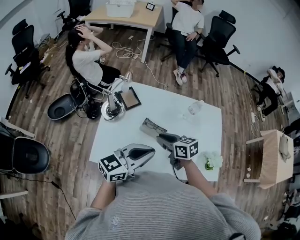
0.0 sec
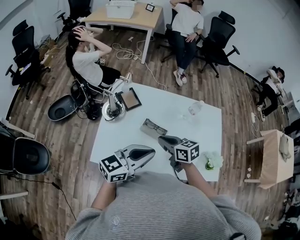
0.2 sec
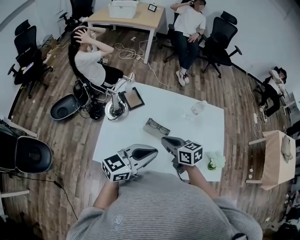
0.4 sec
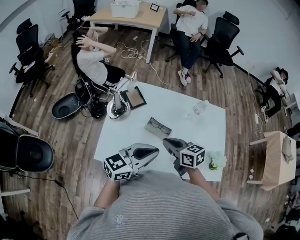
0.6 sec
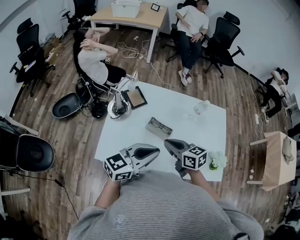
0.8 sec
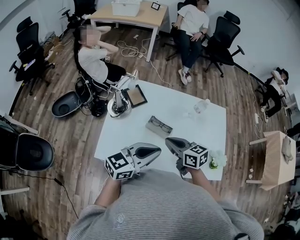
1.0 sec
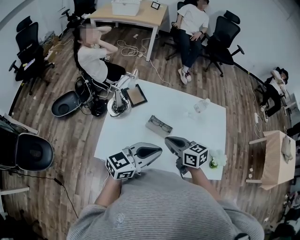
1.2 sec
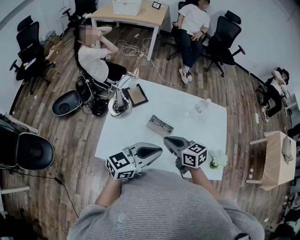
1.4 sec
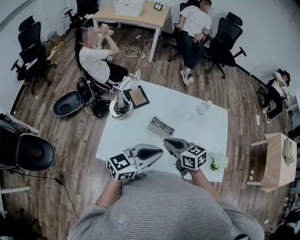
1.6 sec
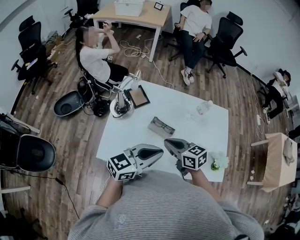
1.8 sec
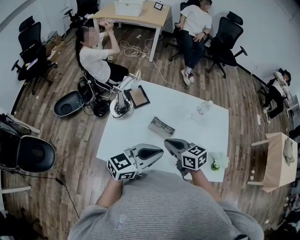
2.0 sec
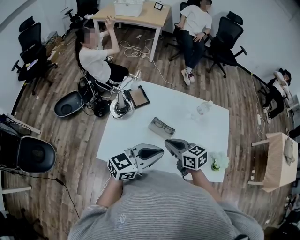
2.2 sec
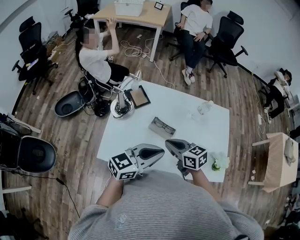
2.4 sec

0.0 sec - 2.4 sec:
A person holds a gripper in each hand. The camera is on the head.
0.0 sec - 1.2 sec: The grippers move only a little.
1.2 sec - 2.4 sec: The two grippers keep their place.

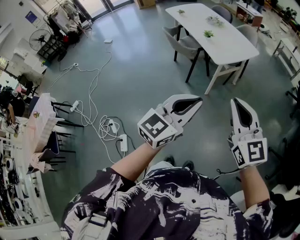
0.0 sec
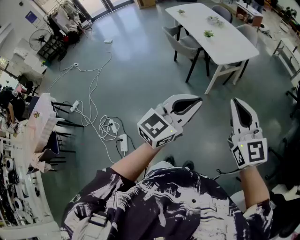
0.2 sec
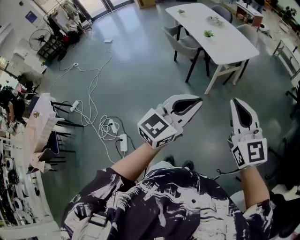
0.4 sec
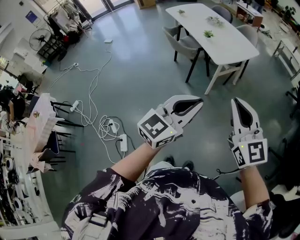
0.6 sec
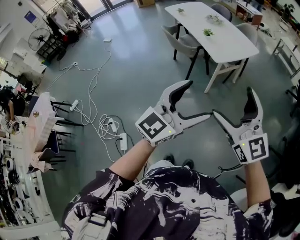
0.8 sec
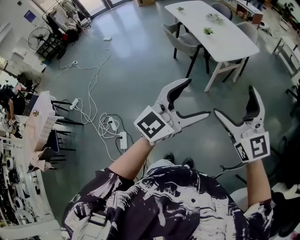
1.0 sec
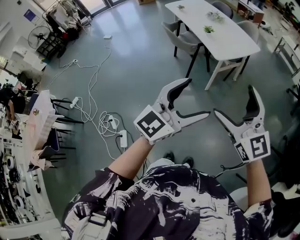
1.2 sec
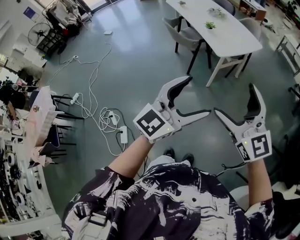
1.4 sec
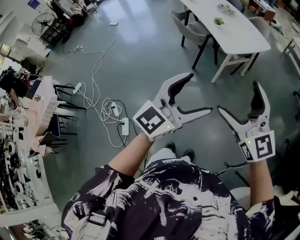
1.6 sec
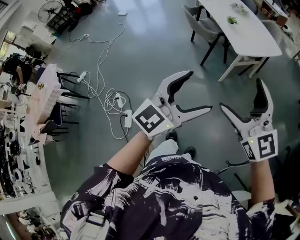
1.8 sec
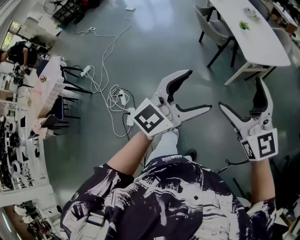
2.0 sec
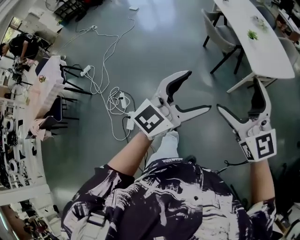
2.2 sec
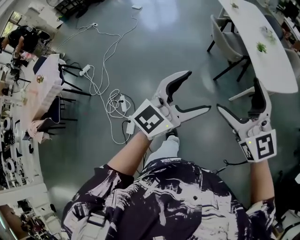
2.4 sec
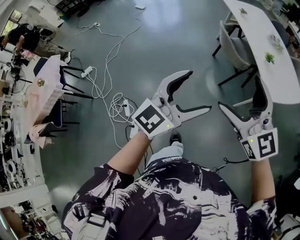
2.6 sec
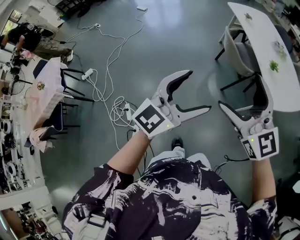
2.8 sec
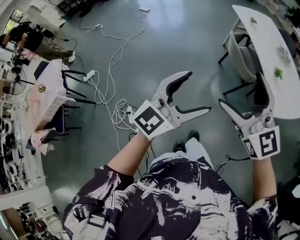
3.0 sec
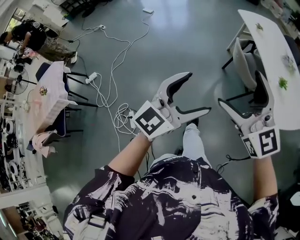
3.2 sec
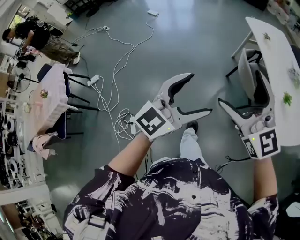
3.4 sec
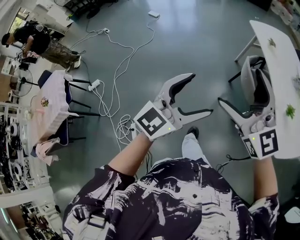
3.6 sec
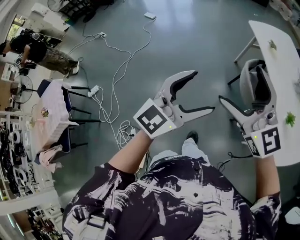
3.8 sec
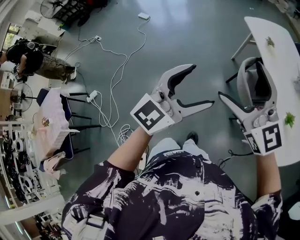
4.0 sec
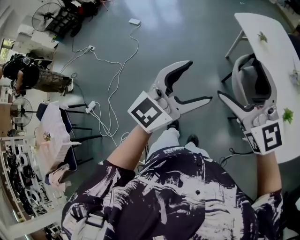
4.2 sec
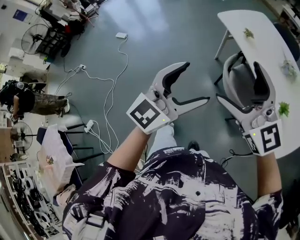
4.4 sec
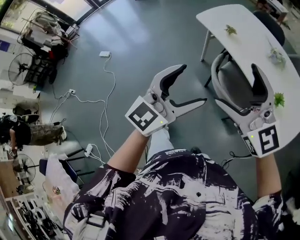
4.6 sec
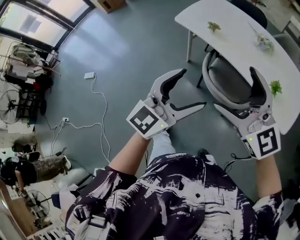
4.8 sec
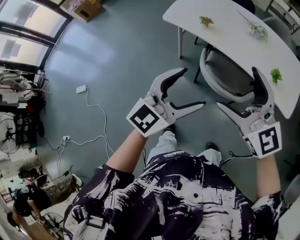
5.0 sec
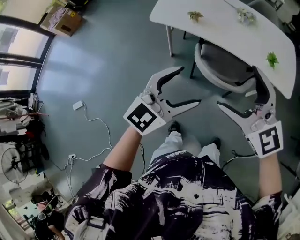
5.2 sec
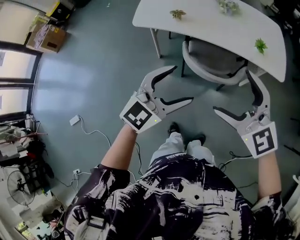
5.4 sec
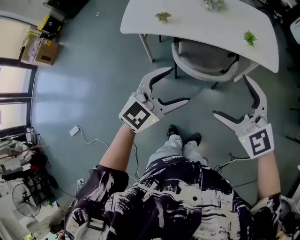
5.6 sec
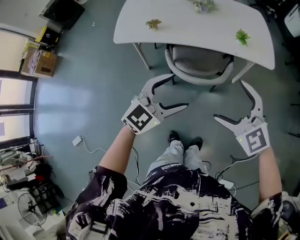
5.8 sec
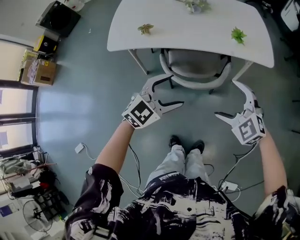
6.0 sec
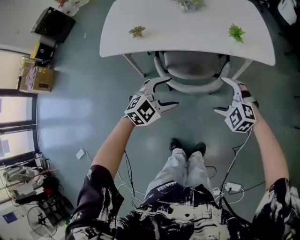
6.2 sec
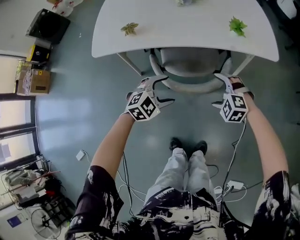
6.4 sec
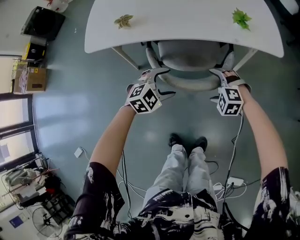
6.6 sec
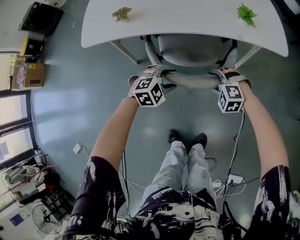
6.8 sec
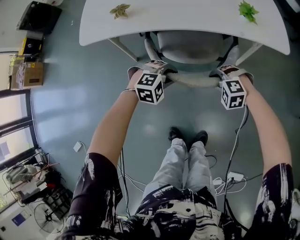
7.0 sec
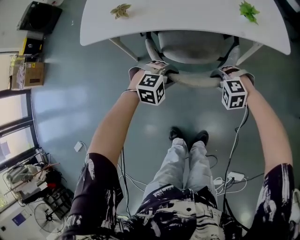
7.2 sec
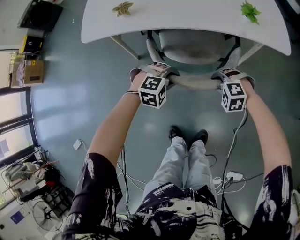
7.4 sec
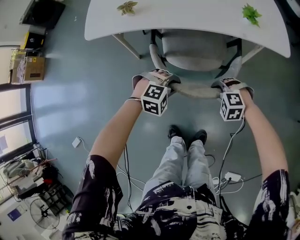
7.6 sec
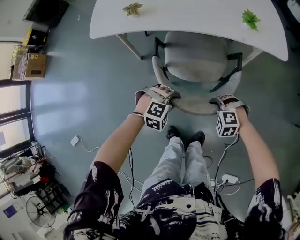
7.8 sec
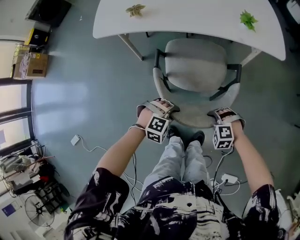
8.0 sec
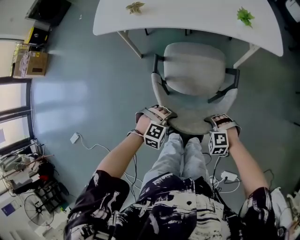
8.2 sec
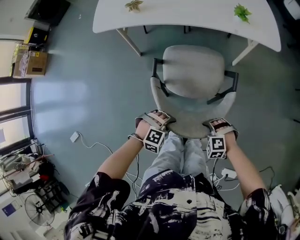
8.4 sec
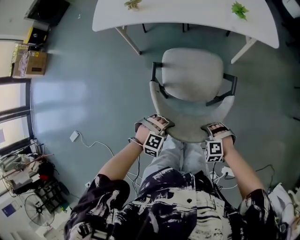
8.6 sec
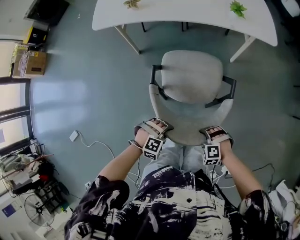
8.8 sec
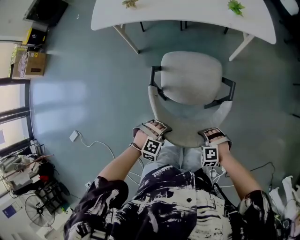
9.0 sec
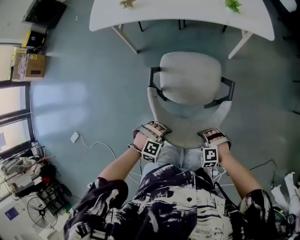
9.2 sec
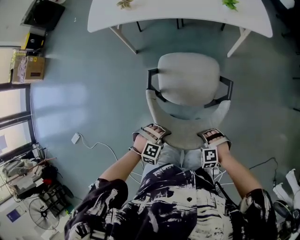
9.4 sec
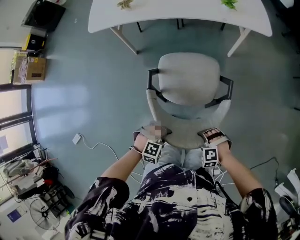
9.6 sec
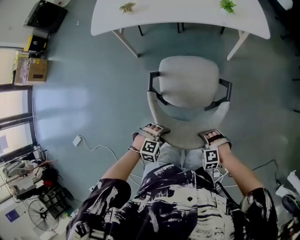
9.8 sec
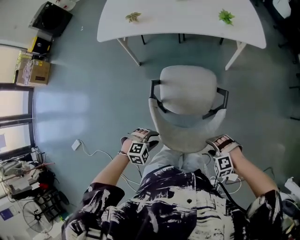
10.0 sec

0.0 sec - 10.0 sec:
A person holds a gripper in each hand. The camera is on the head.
0.0 sec - 1.4 sec: The right gripper opens up; the left gripper opens its fingers.
1.4 sec - 2.8 sec: The two grippers travel together, to the left and forward, about 50 cm.
2.8 sec - 4.2 sec: The pair of grippers is taken forward, some 50 cm.
4.2 sec - 5.8 sec: The right gripper goes about 15 cm downward, and tilts its fingers some 30 degrees downward. Meanwhile the left gripper shifts by roughly 30 cm, and turns by approximately 70 degrees.
5.8 sec - 7.2 sec: Both grippers travel together downward, approximately 35 cm. The right gripper points its fingers some 40 degrees further downward, and closes its fingers; the left gripper tips its fingers downward by approximately 40 degrees, and closes its fingers.
7.2 sec - 8.6 sec: The right gripper ends up roughly 35 cm from where it was. The left gripper shifts by approximately 35 cm.
8.6 sec - 10.0 sec: The left gripper ends up some 10 cm from where it was. The right gripper changes place by roughly 10 cm, and opens.

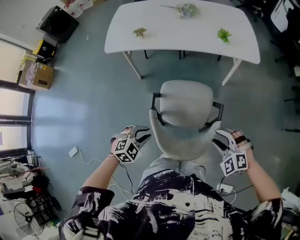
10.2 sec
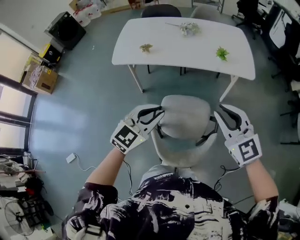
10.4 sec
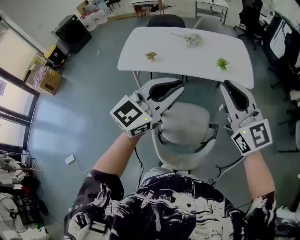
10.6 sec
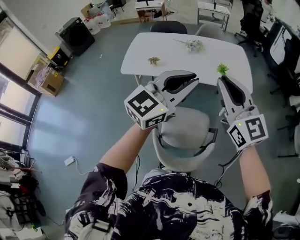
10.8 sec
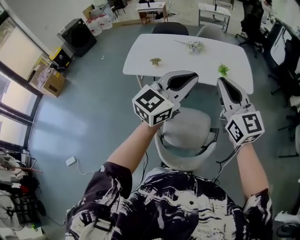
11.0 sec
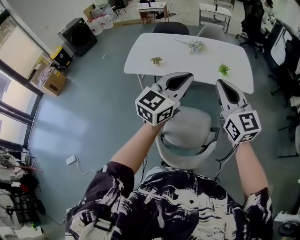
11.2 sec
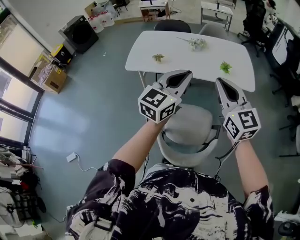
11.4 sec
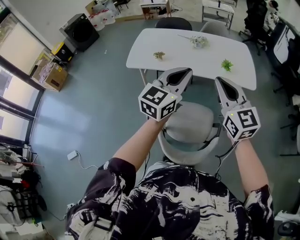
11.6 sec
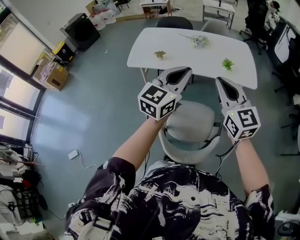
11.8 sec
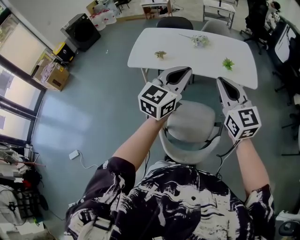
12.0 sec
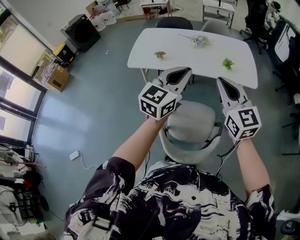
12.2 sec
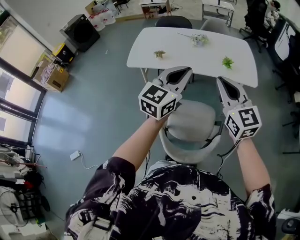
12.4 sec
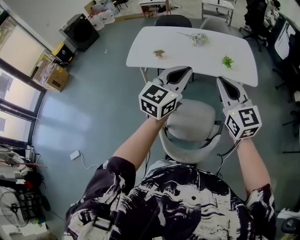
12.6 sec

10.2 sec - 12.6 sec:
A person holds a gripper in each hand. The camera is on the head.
10.2 sec - 11.4 sec: The grippers both shift upward and forward by some 40 cm. The right gripper angles its fingers upward, by about 50 degrees, and closes up. The left gripper points its fingers roughly 60 degrees further upward.
11.4 sec - 12.6 sec: The grippers move only a little.

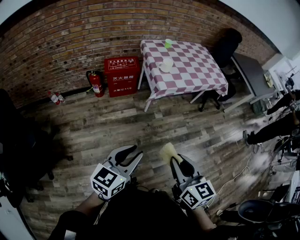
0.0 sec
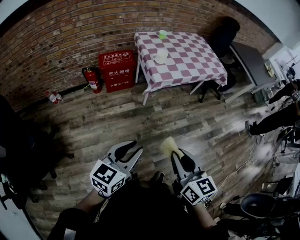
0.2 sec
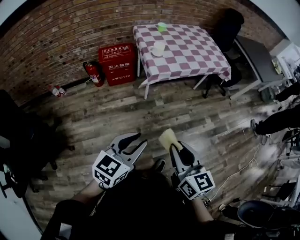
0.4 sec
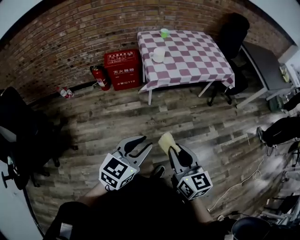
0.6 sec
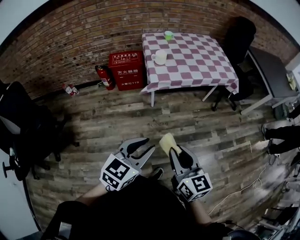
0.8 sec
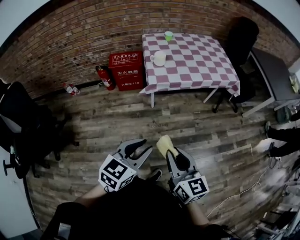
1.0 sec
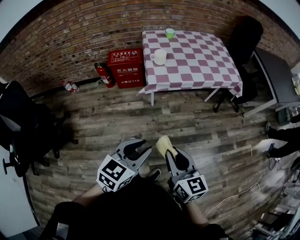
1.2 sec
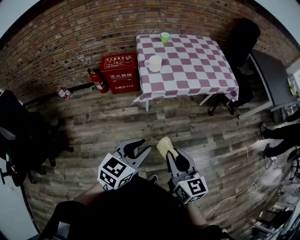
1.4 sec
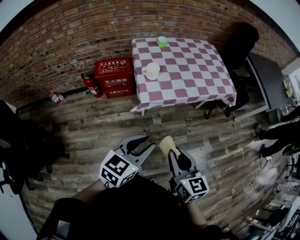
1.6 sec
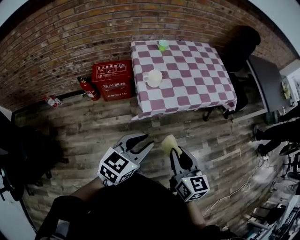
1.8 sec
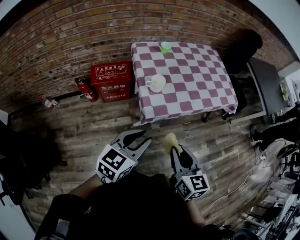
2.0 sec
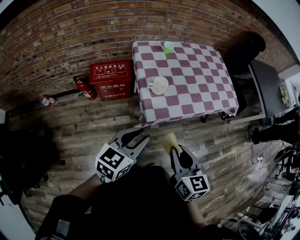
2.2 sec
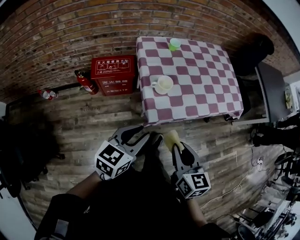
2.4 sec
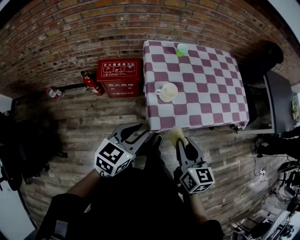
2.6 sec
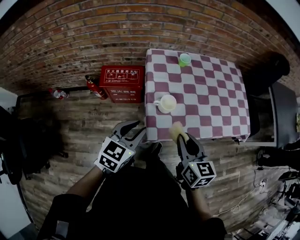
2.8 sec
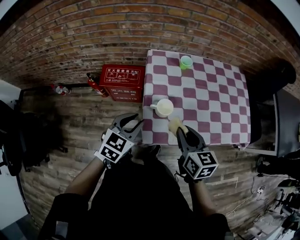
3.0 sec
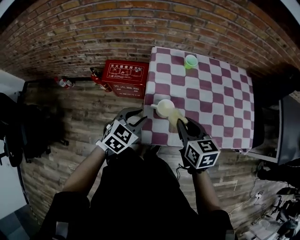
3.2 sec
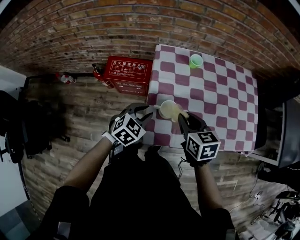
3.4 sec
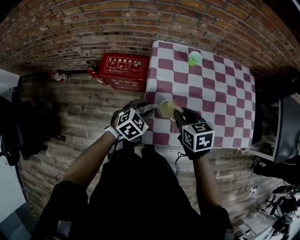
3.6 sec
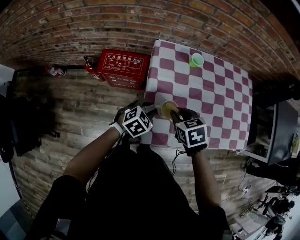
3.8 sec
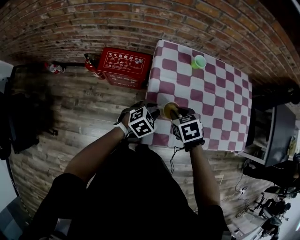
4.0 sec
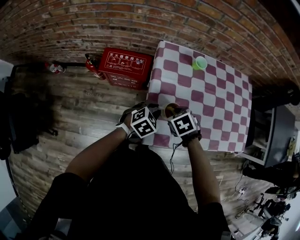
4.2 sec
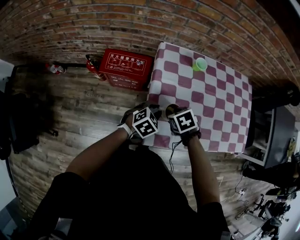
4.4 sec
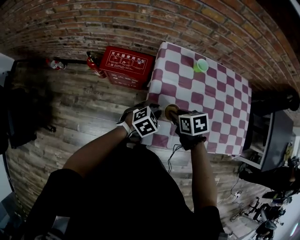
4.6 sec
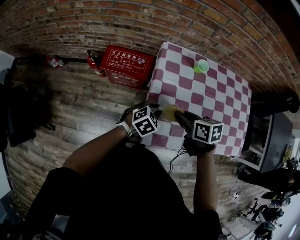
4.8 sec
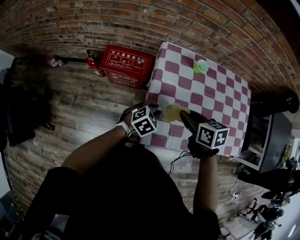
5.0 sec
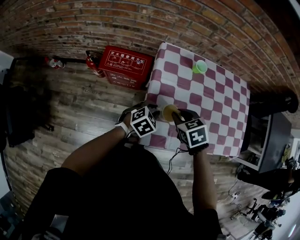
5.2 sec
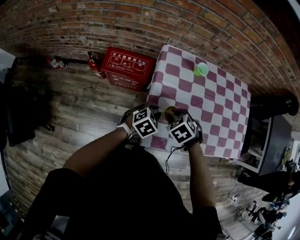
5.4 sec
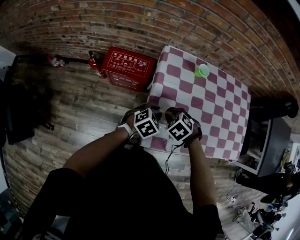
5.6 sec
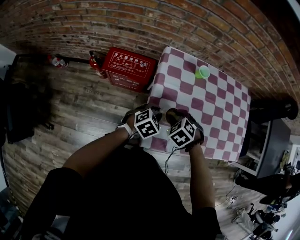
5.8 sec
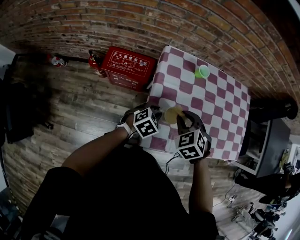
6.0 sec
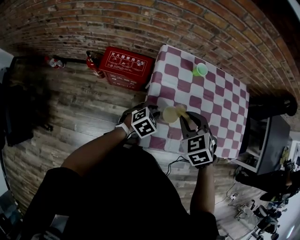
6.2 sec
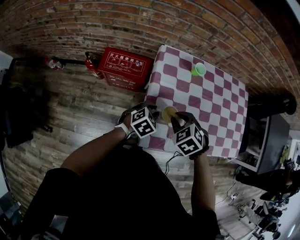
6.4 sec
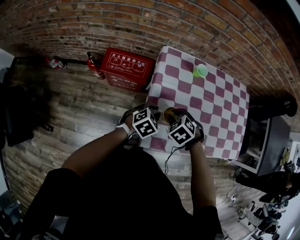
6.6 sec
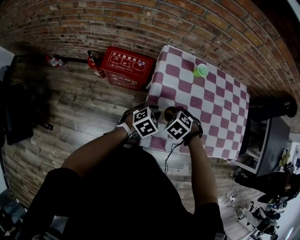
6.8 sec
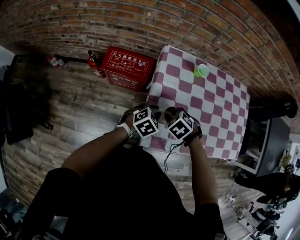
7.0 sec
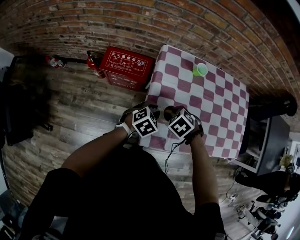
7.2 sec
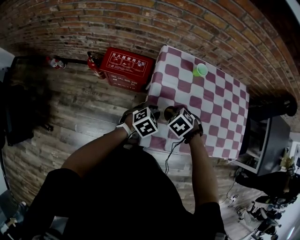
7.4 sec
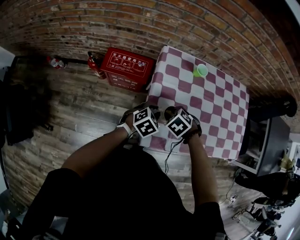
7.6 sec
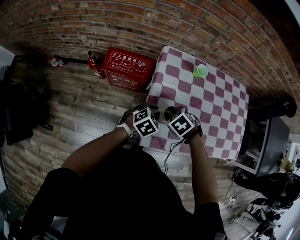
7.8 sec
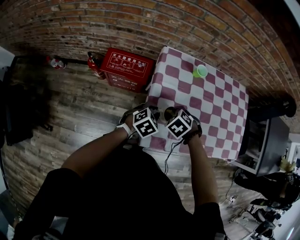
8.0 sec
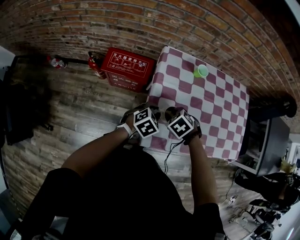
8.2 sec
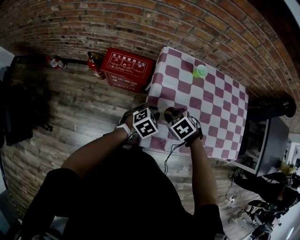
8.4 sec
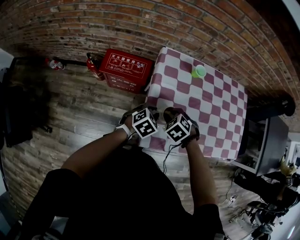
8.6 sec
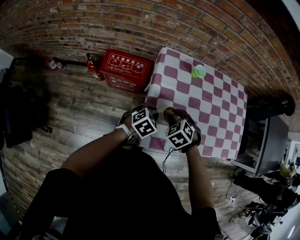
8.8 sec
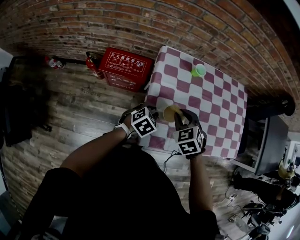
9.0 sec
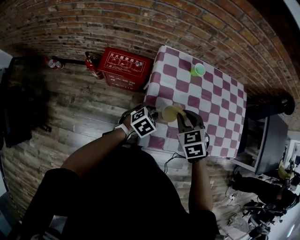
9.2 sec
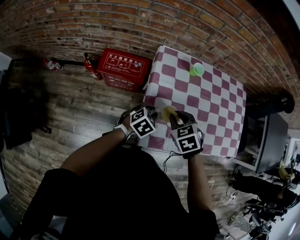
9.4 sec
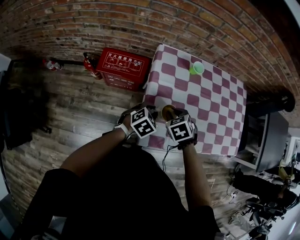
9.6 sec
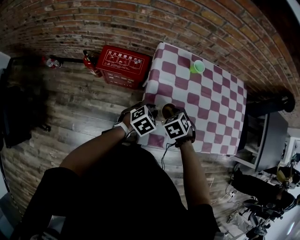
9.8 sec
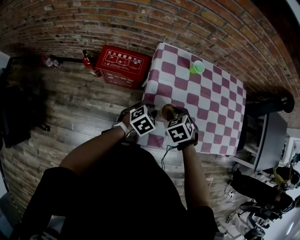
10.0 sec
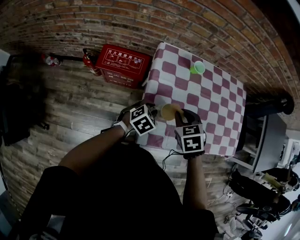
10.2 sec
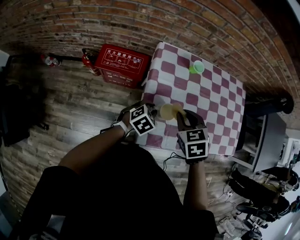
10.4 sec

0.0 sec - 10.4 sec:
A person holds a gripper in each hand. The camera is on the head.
0.0 sec - 1.4 sec: Both grippers travel together to the right and forward, some 30 cm.
1.4 sec - 3.0 sec: Both grippers are carried forward, some 50 cm.
3.0 sec - 4.4 sec: The right gripper moves downward, forward and to the left, some 20 cm, and angles its fingers downward, by some 40 degrees. The left gripper heads downward and forward, covering approximately 15 cm, and changes its angle by roughly 20 degrees.
4.4 sec - 6.0 sec: The right gripper swings up and down, approximately 10 cm each way, with 2 reversals, and rotates approximately 30 degrees.
6.0 sec - 7.4 sec: The right gripper travels downward by about 10 cm, and changes its angle by approximately 20 degrees.
7.4 sec - 9.0 sec: The right gripper shifts some 10 cm upward, and rotates some 30 degrees.
9.0 sec - 10.4 sec: The right gripper reaches roughly 10 cm downward, then returns.
